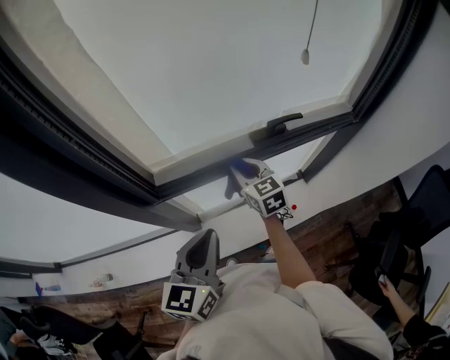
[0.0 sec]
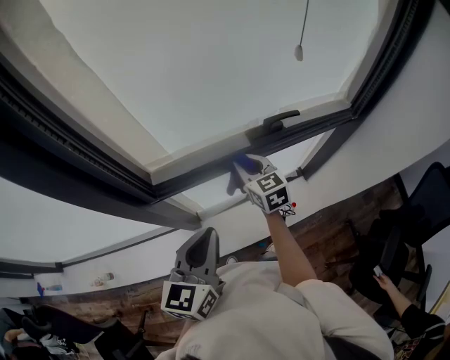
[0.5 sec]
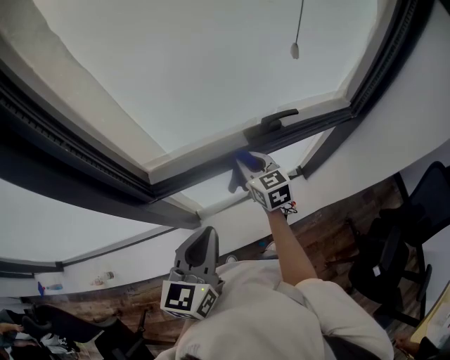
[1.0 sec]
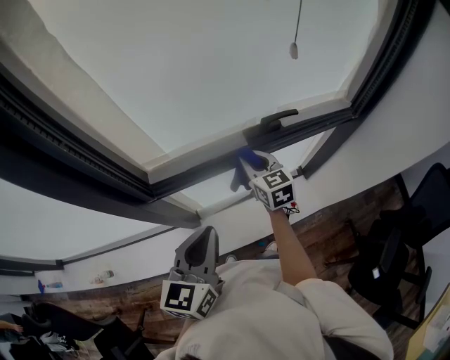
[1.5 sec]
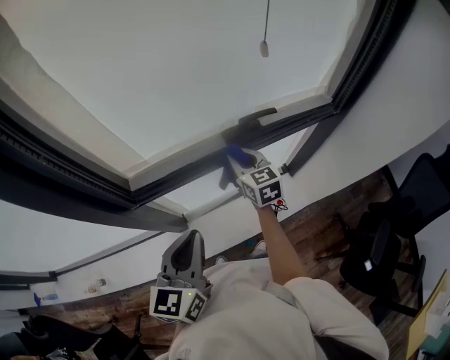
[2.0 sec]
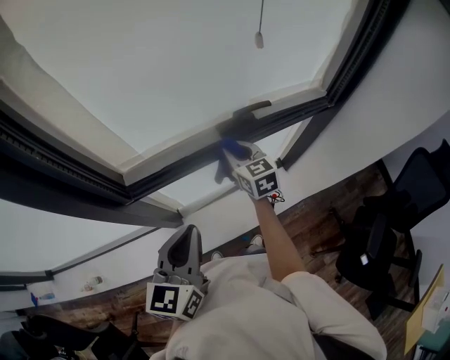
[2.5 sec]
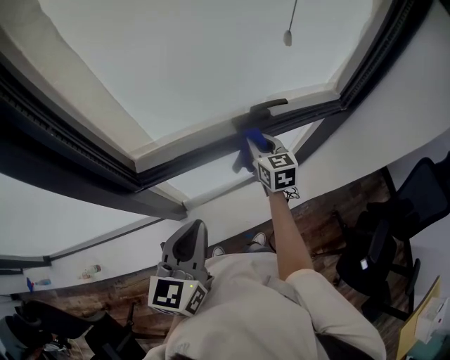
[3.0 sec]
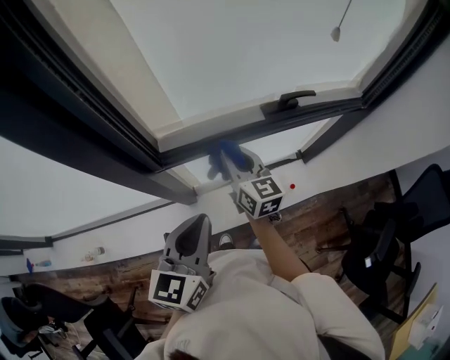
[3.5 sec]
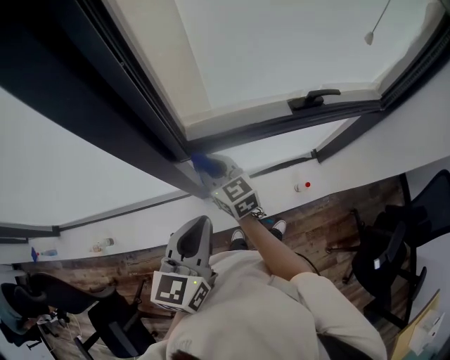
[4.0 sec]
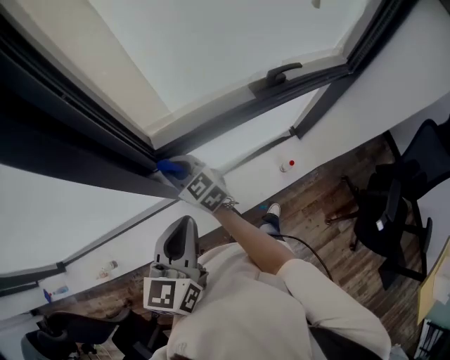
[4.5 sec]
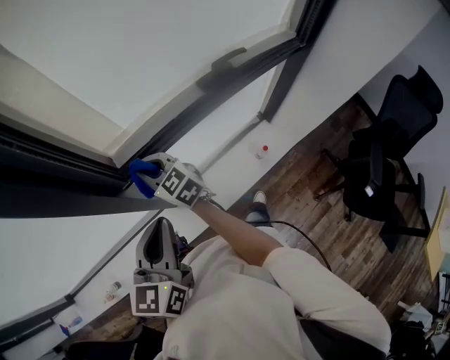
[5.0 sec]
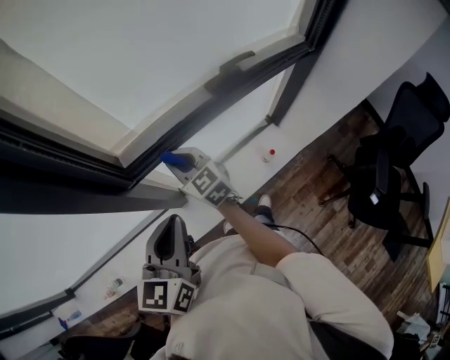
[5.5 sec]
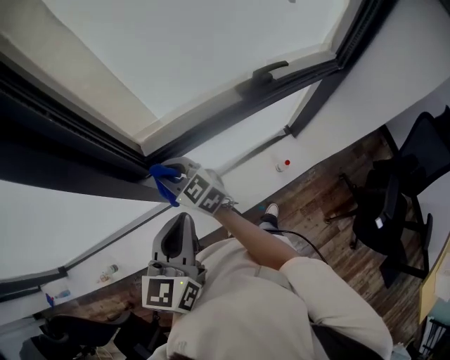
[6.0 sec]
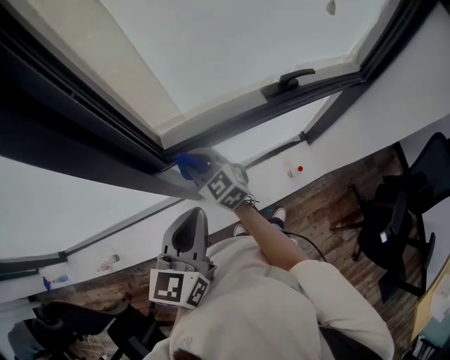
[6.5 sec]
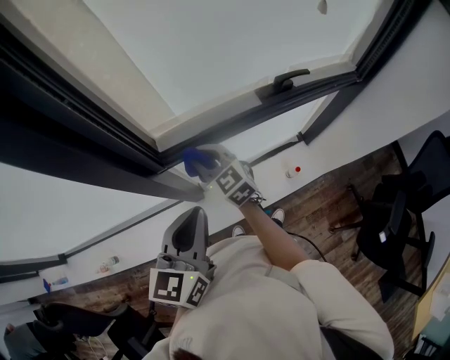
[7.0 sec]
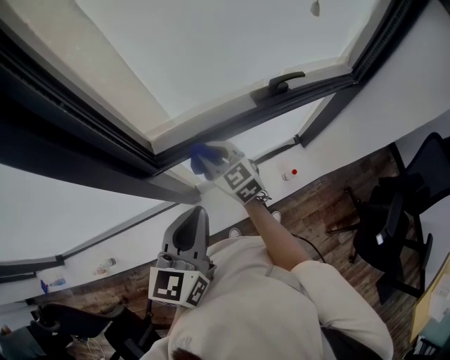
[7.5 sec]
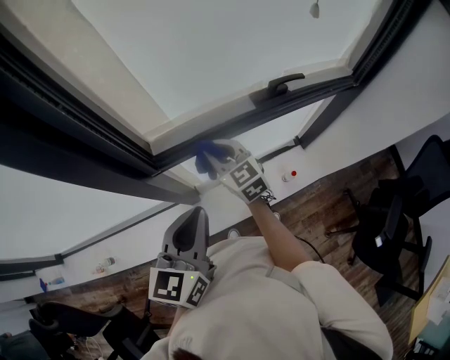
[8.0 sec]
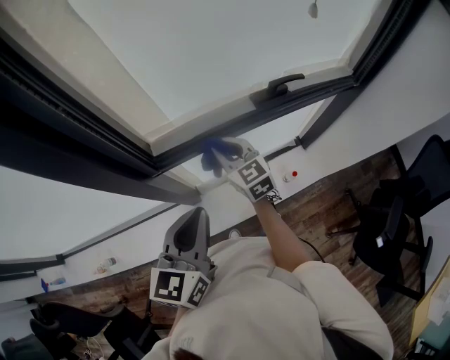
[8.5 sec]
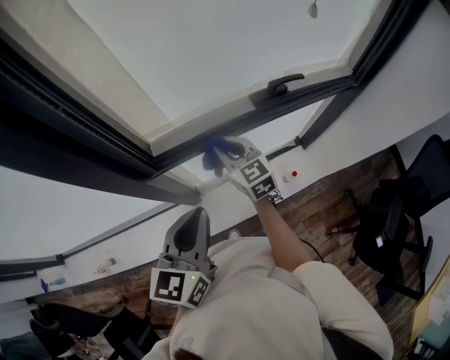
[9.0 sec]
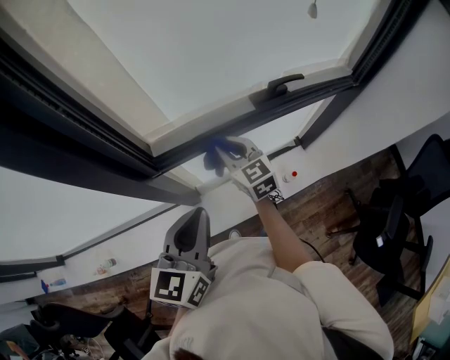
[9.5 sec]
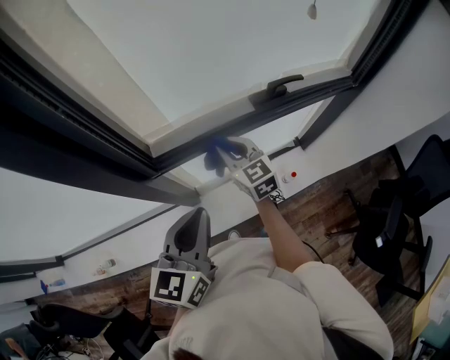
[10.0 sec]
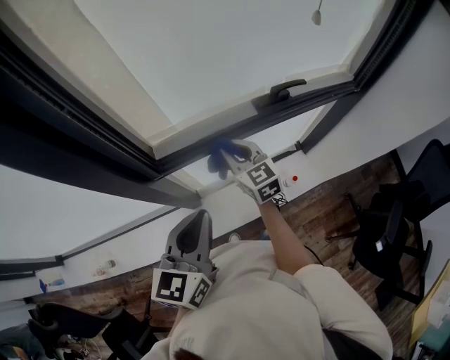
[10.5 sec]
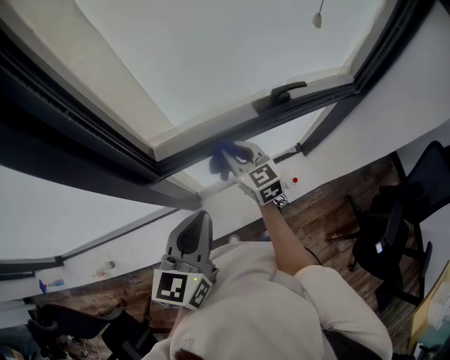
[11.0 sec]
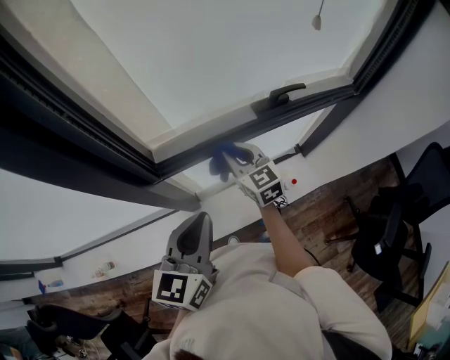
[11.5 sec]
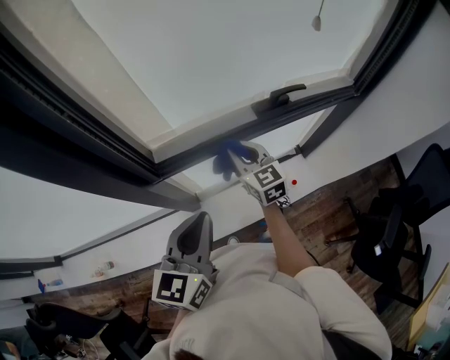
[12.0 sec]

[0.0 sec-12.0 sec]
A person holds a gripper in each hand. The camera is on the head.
0.0 sec to 2.0 sec: The right gripper shifts about 10 cm to the right.
2.0 sec to 4.0 sec: The right gripper heads to the left, covering approximately 30 cm, and changes its angle by roughly 20 degrees. Meanwhile the left gripper shifts about 15 cm to the left.
4.0 sec to 6.0 sec: The right gripper moves roughly 10 cm to the right and comes back.
6.0 sec to 8.0 sec: The right gripper is displaced to the right by approximately 15 cm.
8.0 sec to 10.0 sec: The grippers move only a little.
10.0 sec to 12.0 sec: The grippers stay close to where they were, moving slightly.

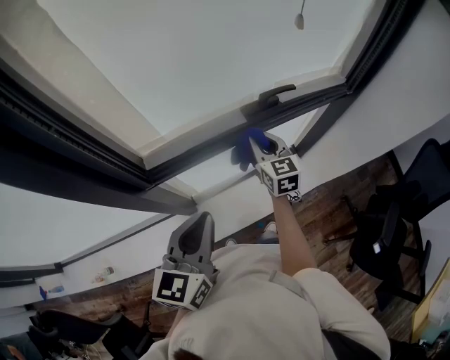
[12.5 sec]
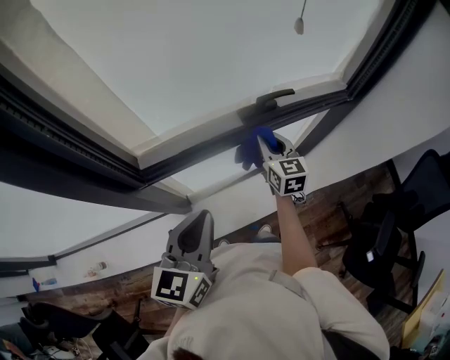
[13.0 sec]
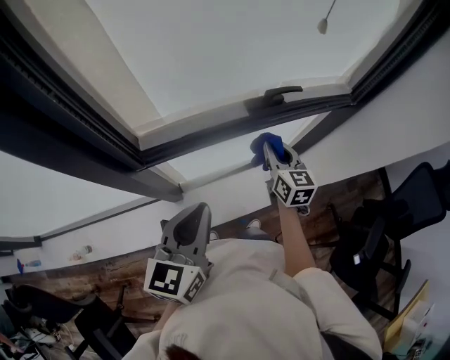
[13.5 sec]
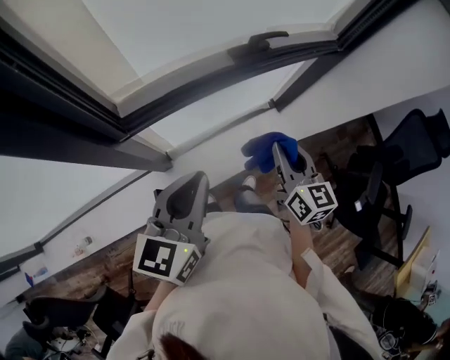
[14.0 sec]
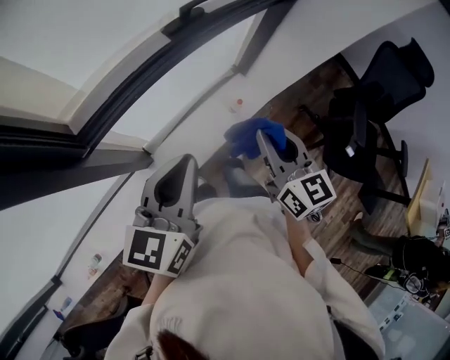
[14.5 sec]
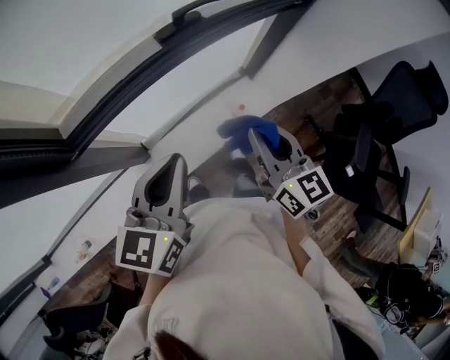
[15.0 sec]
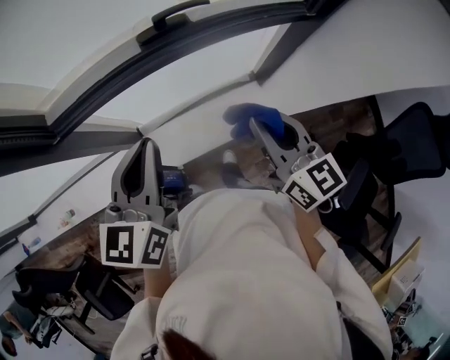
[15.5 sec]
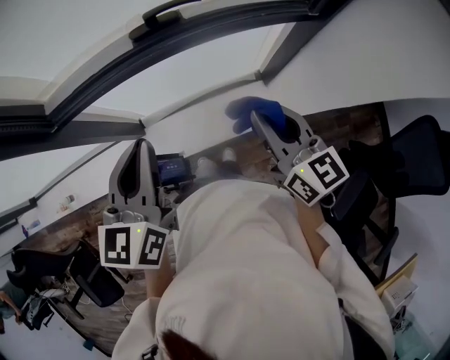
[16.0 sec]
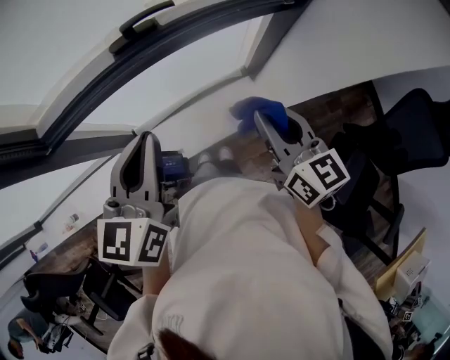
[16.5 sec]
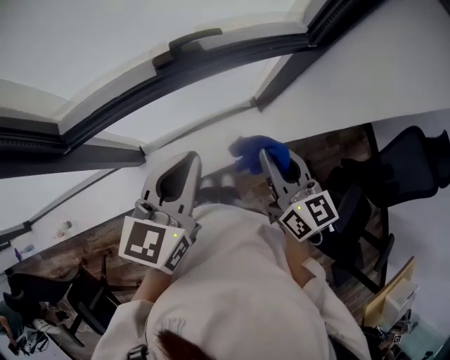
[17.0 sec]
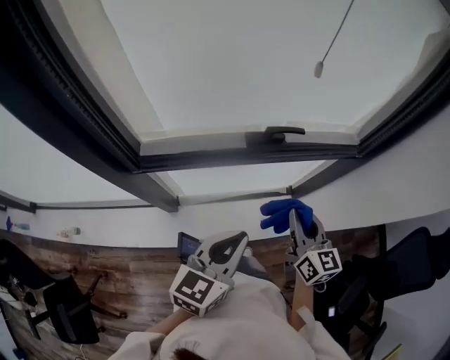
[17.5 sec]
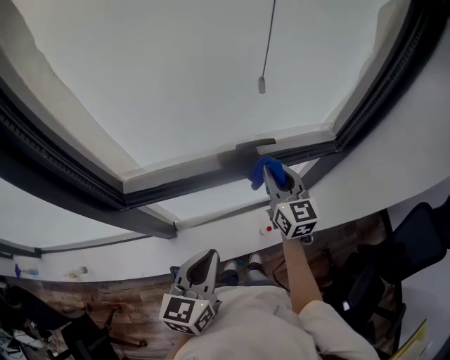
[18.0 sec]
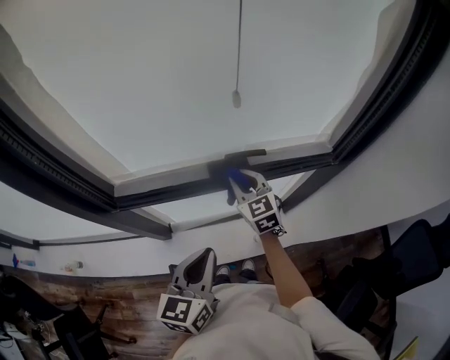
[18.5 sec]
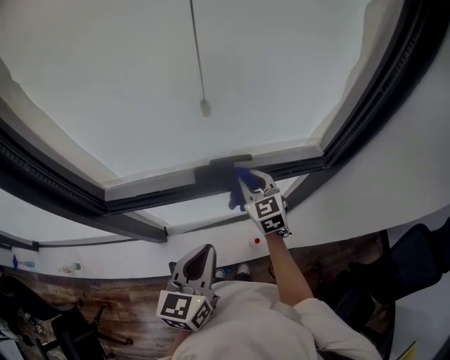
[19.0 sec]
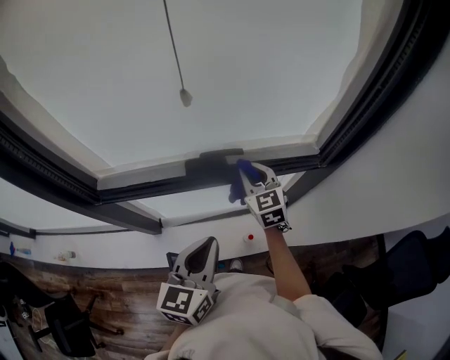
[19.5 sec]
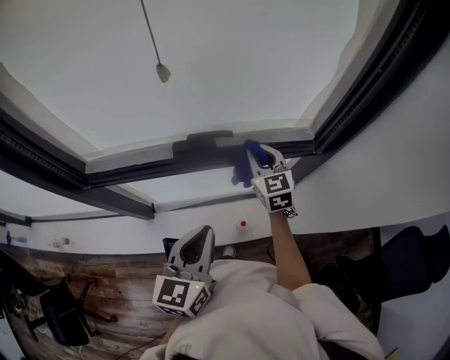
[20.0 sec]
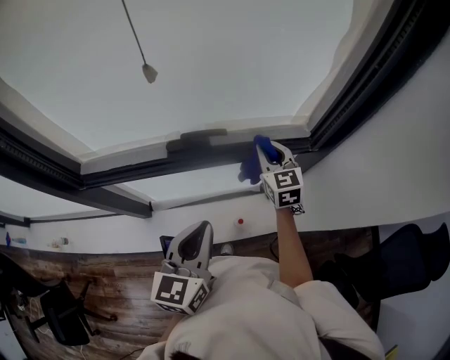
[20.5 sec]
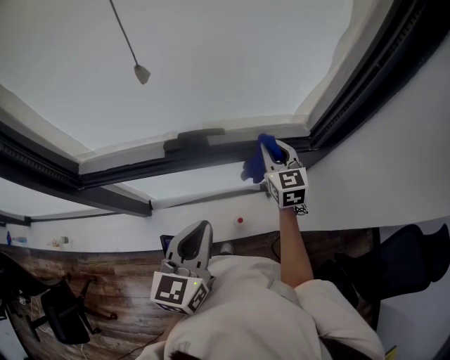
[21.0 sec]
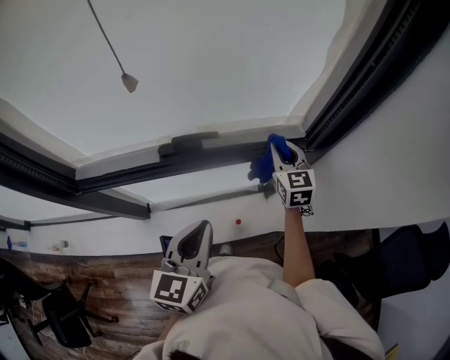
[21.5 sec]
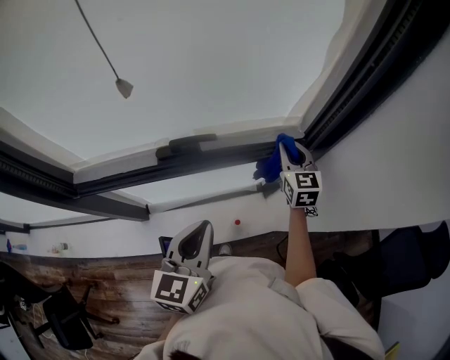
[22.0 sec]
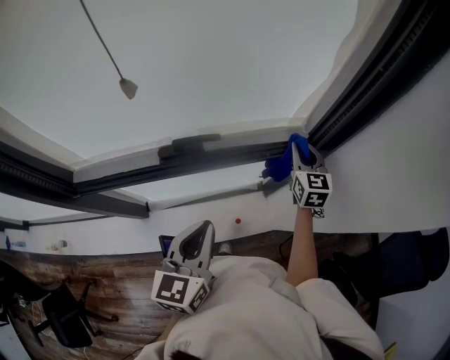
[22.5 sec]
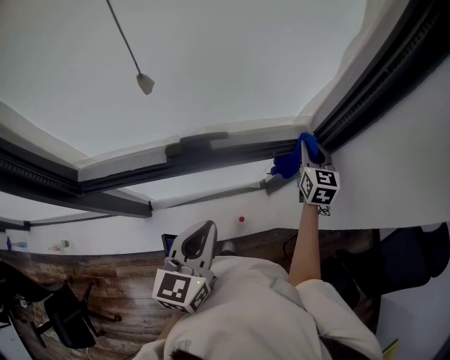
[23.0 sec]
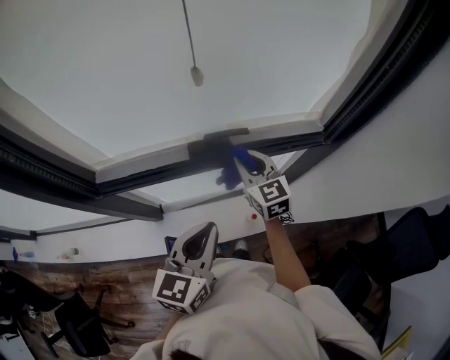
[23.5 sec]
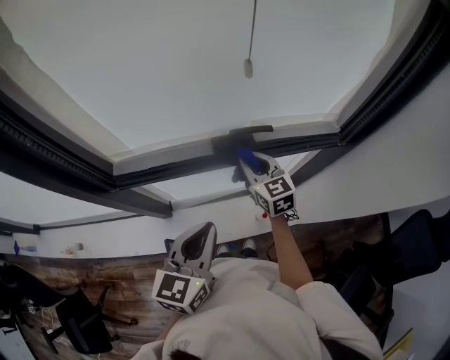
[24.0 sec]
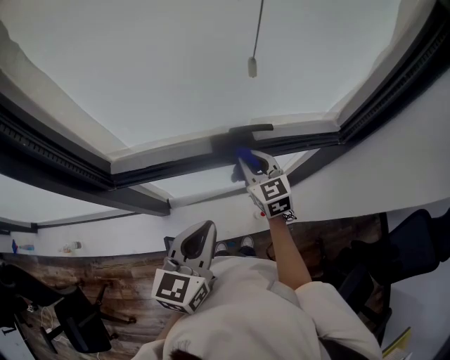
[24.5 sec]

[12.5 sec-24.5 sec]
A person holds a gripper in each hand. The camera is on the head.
12.5 sec to 14.5 sec: The right gripper moves backward and to the right, approximately 25 cm. The left gripper travels to the right by roughly 5 cm, and turns by roughly 20 degrees.
14.5 sec to 16.5 sec: The right gripper shifts by roughly 20 cm, and turns by roughly 20 degrees. Meanwhile the left gripper moves approximately 20 cm, and rotates some 30 degrees.
16.5 sec to 18.5 sec: The left gripper heads to the left, covering roughly 5 cm; the right gripper heads forward and to the left, covering some 30 cm, and changes its angle by about 30 degrees.
18.5 sec to 20.5 sec: The right gripper goes about 20 cm to the right. The left gripper shifts some 10 cm to the right.
20.5 sec to 22.5 sec: The right gripper moves to the right, some 15 cm.
22.5 sec to 24.5 sec: The right gripper shifts approximately 30 cm to the left, and rotates approximately 20 degrees; the left gripper heads to the left, covering some 15 cm.

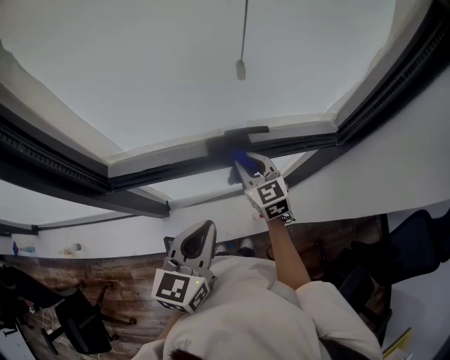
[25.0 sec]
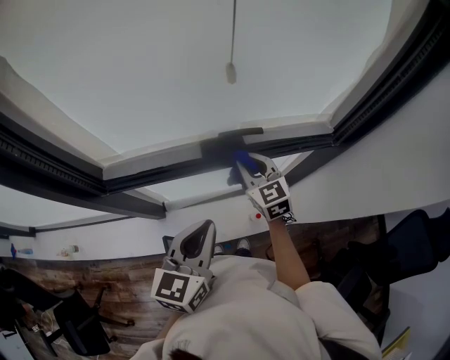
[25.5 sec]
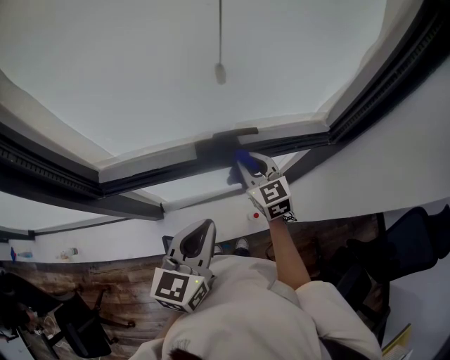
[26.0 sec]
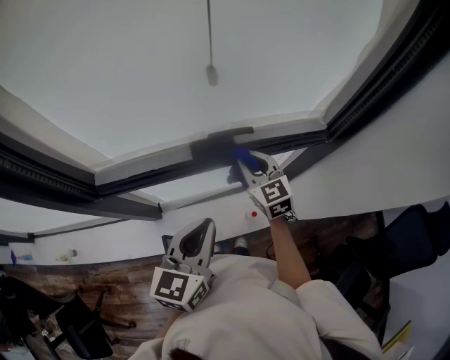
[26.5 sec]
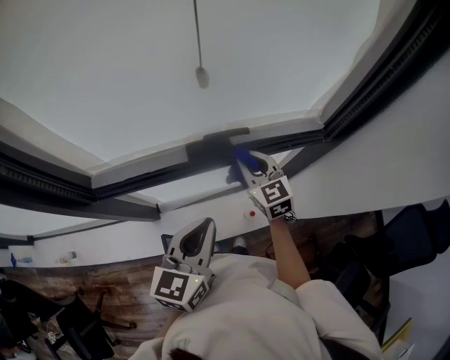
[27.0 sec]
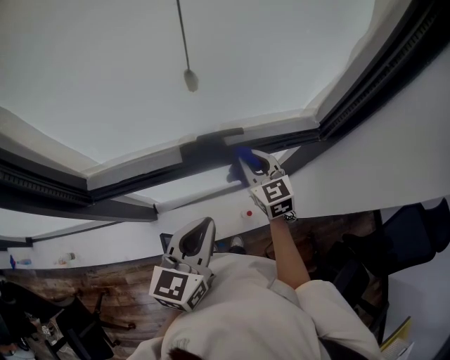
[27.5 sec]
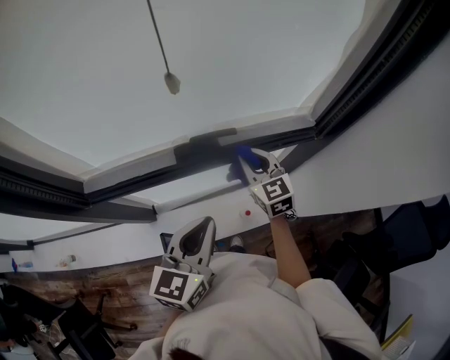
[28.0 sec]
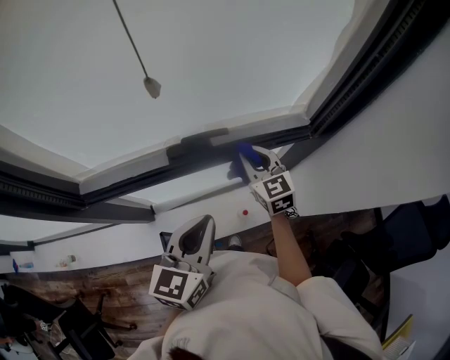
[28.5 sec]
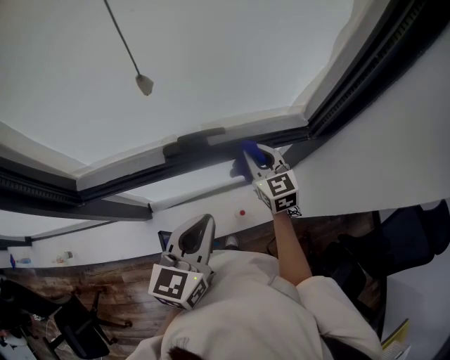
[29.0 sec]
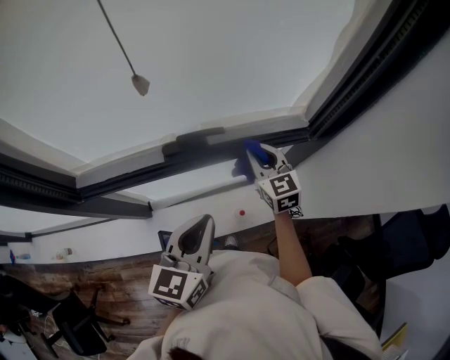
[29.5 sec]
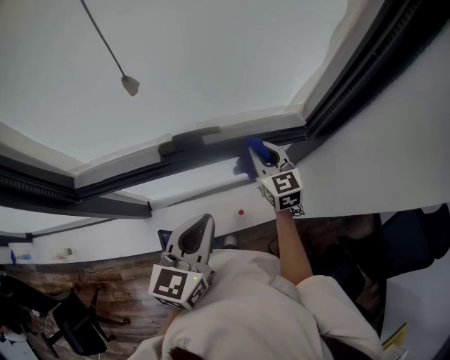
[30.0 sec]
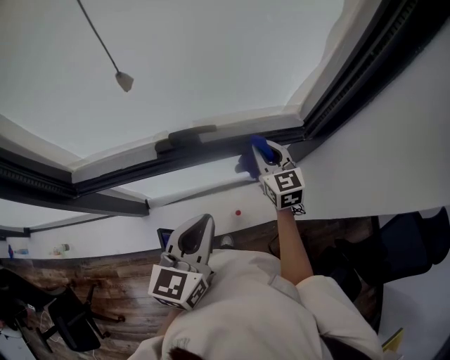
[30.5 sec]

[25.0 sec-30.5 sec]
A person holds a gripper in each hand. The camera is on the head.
25.0 sec to 27.0 sec: The right gripper moves to the right, approximately 5 cm.
27.0 sec to 28.5 sec: The right gripper heads to the right, covering some 5 cm.
28.5 sec to 30.5 sec: The right gripper travels to the right by roughly 5 cm.
